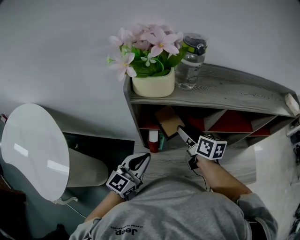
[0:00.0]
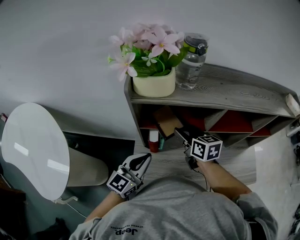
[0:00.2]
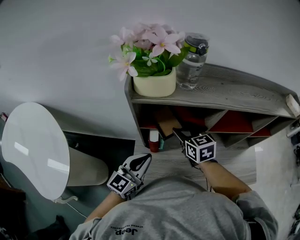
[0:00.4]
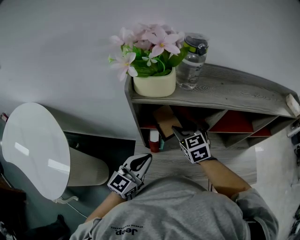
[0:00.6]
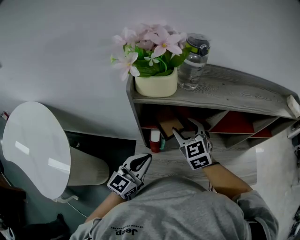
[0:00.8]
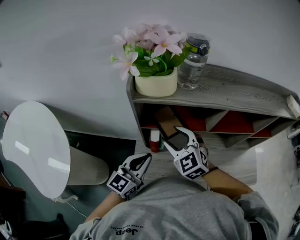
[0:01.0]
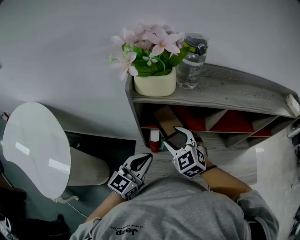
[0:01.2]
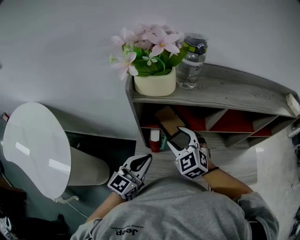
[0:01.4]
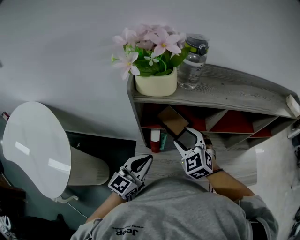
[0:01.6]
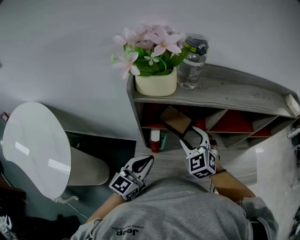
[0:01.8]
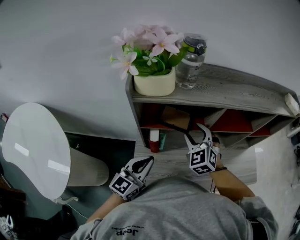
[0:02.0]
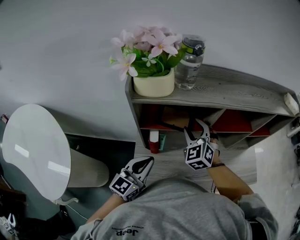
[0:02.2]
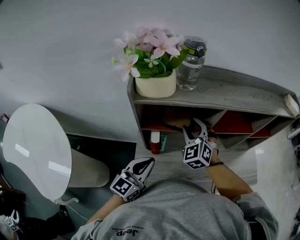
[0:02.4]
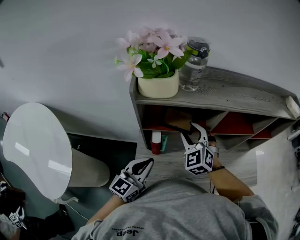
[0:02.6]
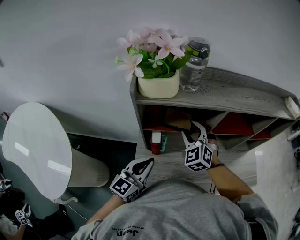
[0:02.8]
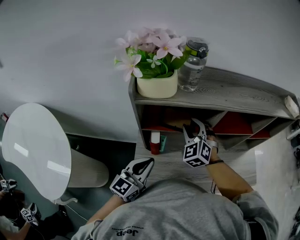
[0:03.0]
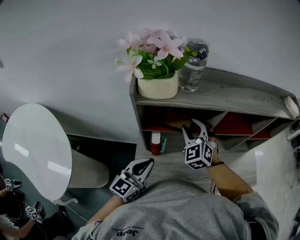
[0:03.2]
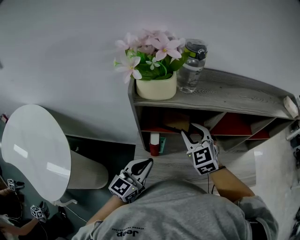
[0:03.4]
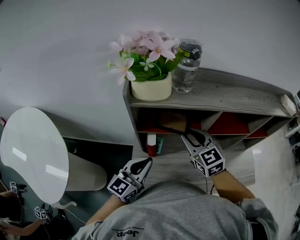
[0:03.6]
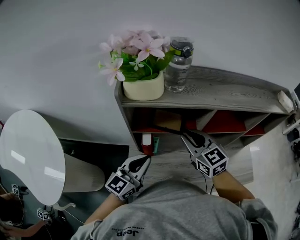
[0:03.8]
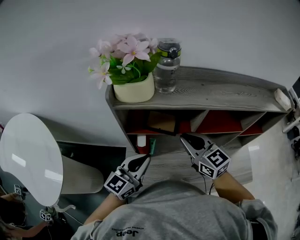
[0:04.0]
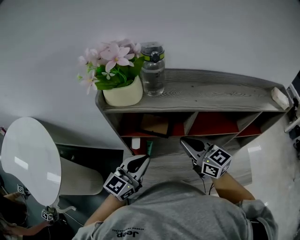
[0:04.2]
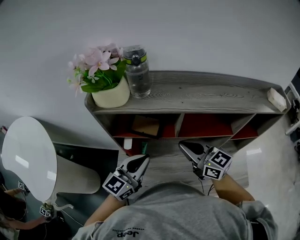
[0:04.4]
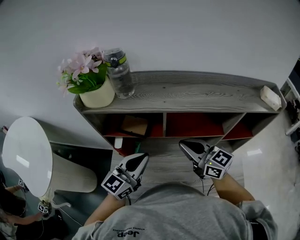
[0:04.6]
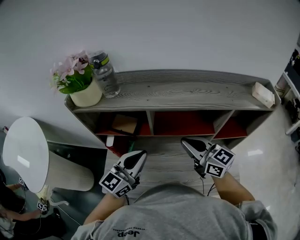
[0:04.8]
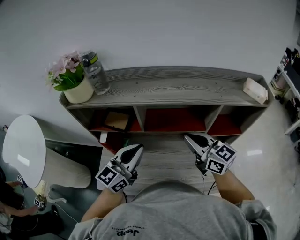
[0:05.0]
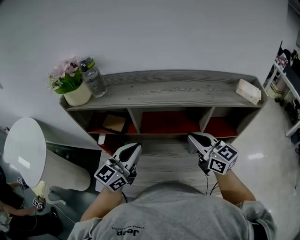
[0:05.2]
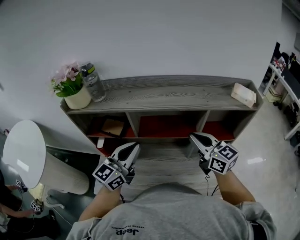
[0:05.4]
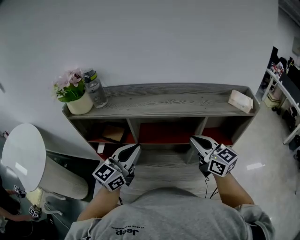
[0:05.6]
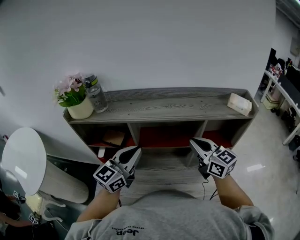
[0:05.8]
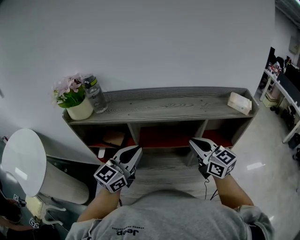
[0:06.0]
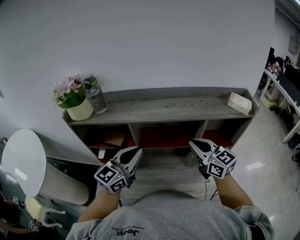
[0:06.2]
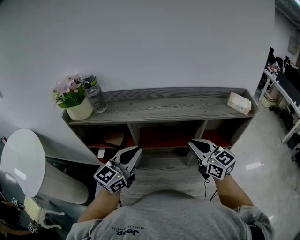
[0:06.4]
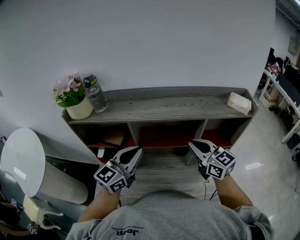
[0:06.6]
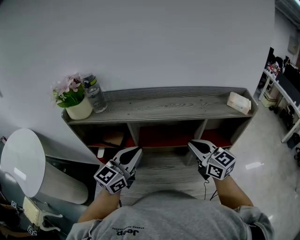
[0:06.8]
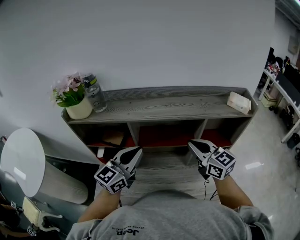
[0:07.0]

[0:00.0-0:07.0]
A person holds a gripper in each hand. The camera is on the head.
0:00.0 to 0:01.4: The right gripper shifts about 5 cm to the left, and rotates around the line of its fingers by some 70 degrees, counterclockwise from behind.
0:01.4 to 0:02.8: The right gripper heads forward, covering about 5 cm.
0:02.8 to 0:04.2: The right gripper goes roughly 10 cm to the right, upward and backward, swivels some 60 degrees, and closes. The left gripper goes roughly 10 cm to the right.
0:04.2 to 0:05.6: The right gripper heads to the right, covering roughly 30 cm. Meanwhile the left gripper heads to the right and upward, covering some 25 cm.
0:05.6 to 0:07.0: The two grippers keep their place.

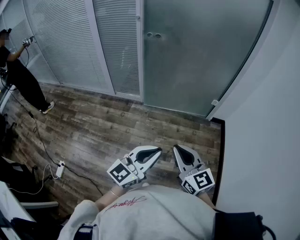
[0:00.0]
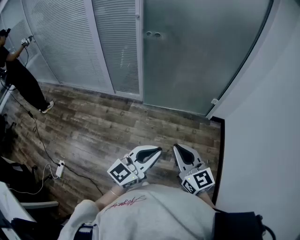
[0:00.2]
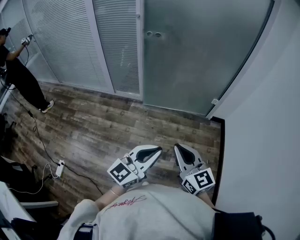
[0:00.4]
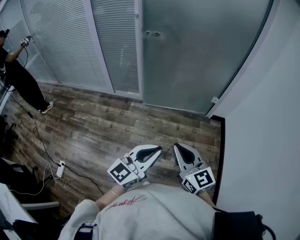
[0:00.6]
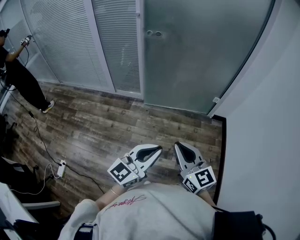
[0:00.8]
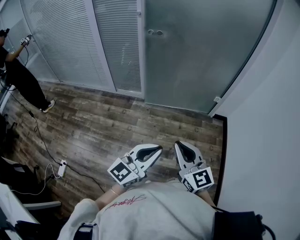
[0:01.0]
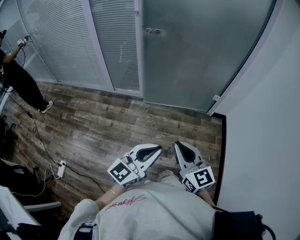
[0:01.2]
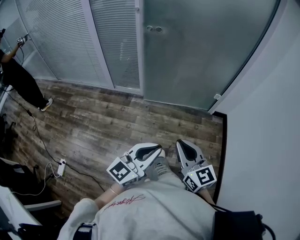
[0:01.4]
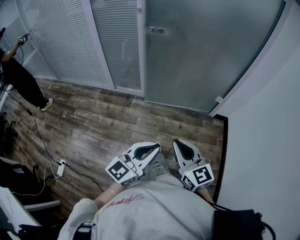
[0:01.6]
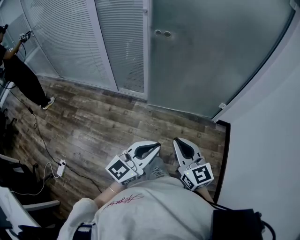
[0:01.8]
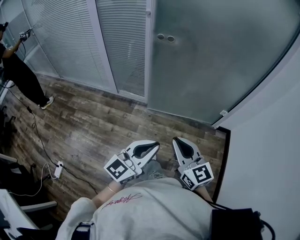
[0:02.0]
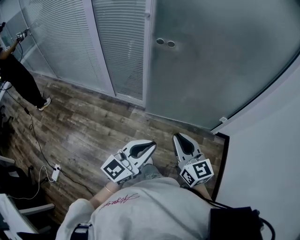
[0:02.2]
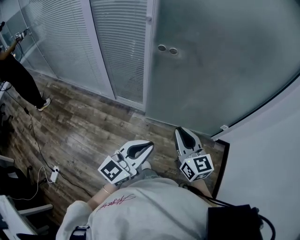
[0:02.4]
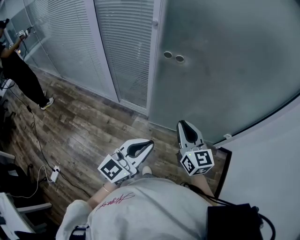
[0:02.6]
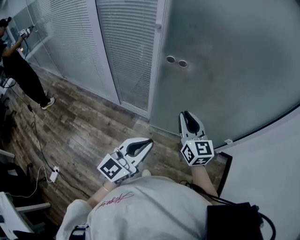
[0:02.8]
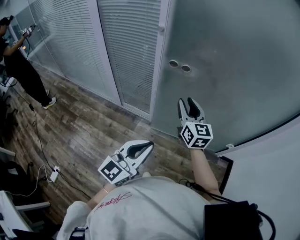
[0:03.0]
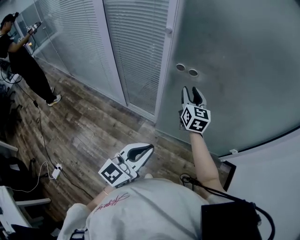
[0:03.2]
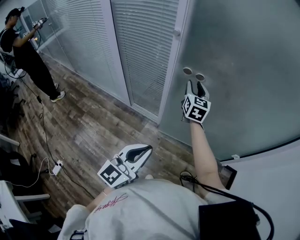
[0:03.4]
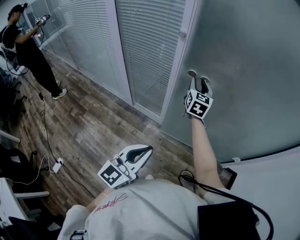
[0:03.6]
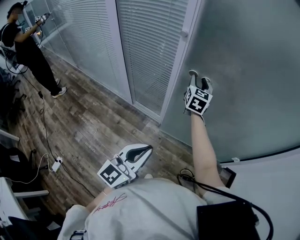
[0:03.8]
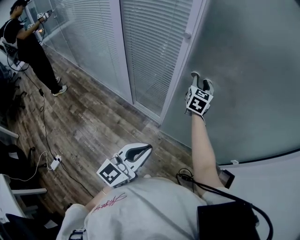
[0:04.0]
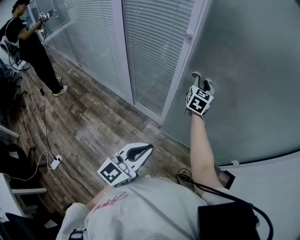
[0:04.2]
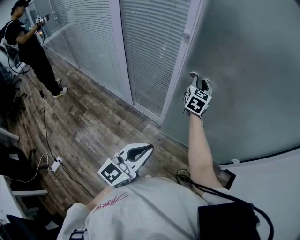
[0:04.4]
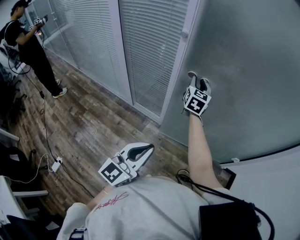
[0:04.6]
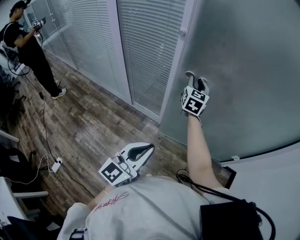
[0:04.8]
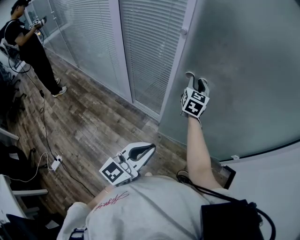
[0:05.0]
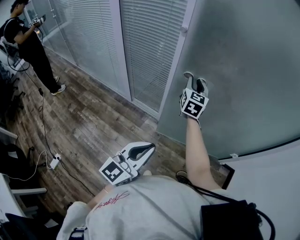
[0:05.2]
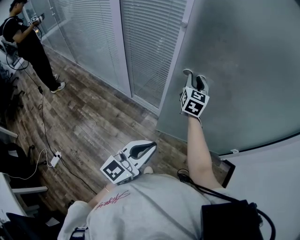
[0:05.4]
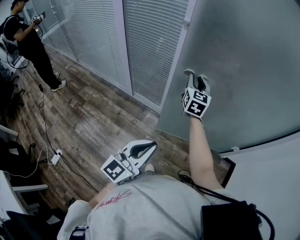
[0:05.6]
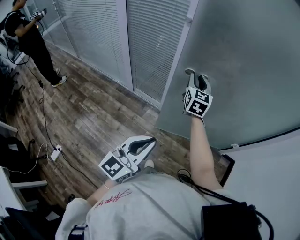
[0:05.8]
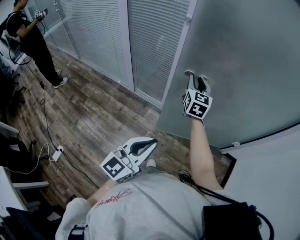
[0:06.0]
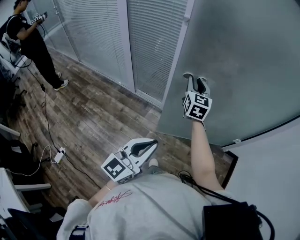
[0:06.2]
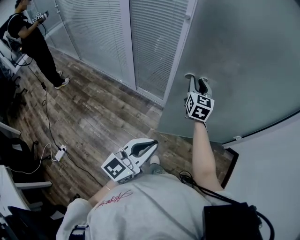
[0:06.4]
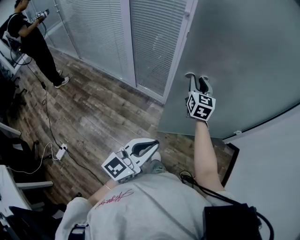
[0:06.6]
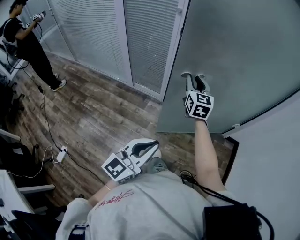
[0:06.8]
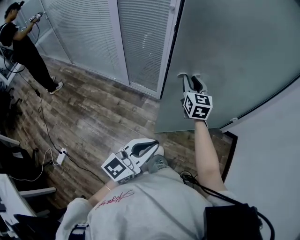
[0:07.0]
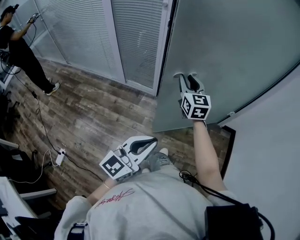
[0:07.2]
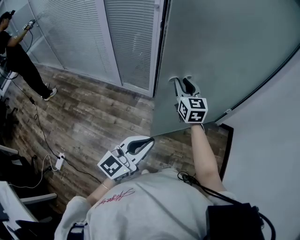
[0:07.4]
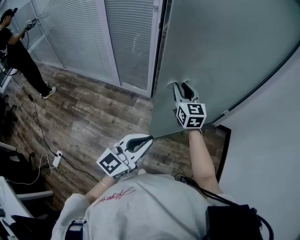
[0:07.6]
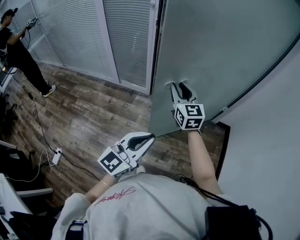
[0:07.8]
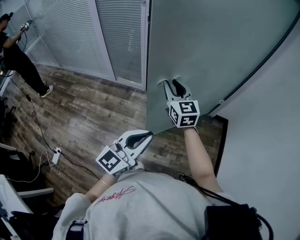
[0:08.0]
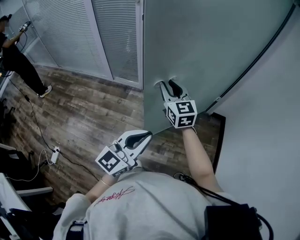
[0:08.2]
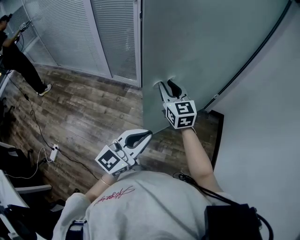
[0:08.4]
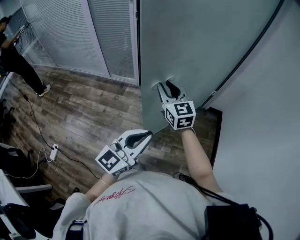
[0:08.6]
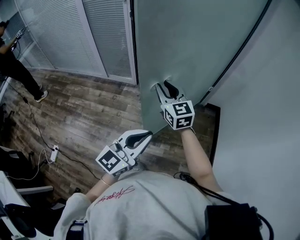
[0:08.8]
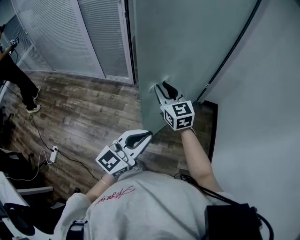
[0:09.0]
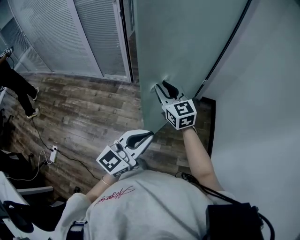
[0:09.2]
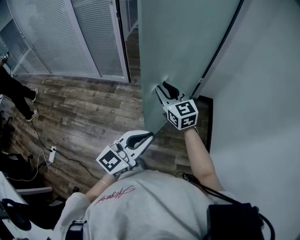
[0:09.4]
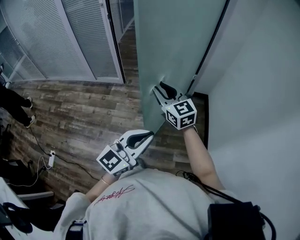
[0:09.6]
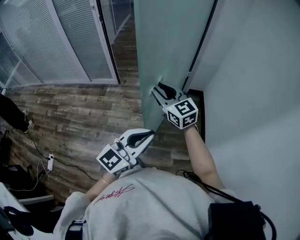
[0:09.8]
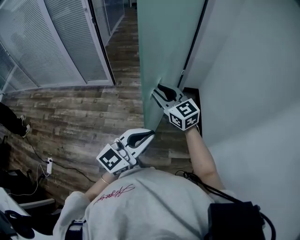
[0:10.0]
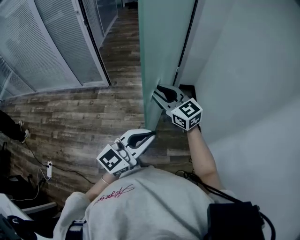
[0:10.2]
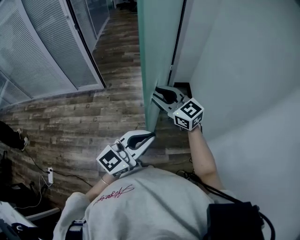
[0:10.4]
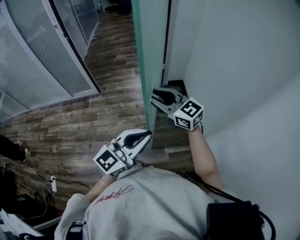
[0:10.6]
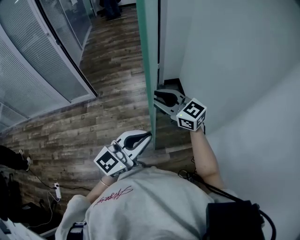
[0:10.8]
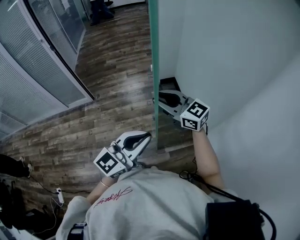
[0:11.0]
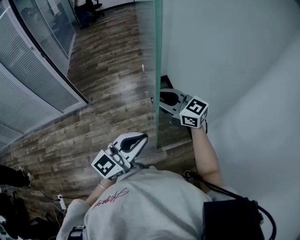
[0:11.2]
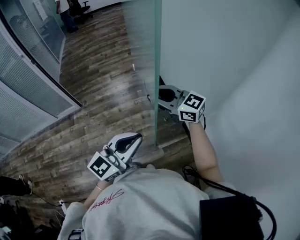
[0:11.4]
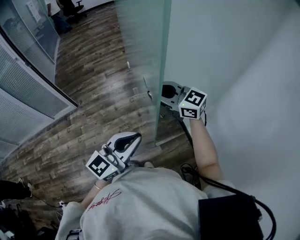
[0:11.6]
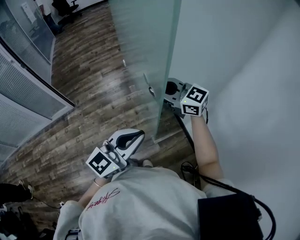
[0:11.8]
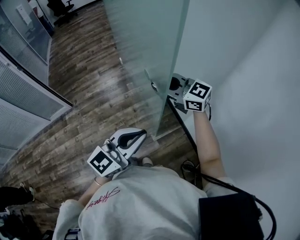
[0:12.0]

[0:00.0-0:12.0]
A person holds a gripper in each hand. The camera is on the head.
0:00.0 to 0:01.6: The two grippers go roughly 5 cm forward.
0:01.6 to 0:03.0: The left gripper shifts about 30 cm forward; the right gripper is displaced forward by about 50 cm, and opens.
0:03.0 to 0:04.4: The right gripper moves forward and to the left, approximately 20 cm, and swivels approximately 20 degrees. Meanwhile the left gripper ends up some 5 cm from where it was.
0:04.4 to 0:06.0: The right gripper heads backward, covering roughly 15 cm; the left gripper goes roughly 10 cm backward.
0:06.0 to 0:07.6: The two grippers go some 20 cm backward and to the right.
0:07.6 to 0:09.0: The left gripper goes about 20 cm to the right and backward. The right gripper shifts some 20 cm backward and to the right.
0:09.0 to 0:10.4: The right gripper heads to the right and backward, covering roughly 20 cm, while the left gripper heads to the right, covering roughly 15 cm, and rotates roughly 20 degrees.
0:10.4 to 0:12.0: The left gripper goes approximately 10 cm to the right, and changes its angle by approximately 20 degrees. The right gripper goes roughly 20 cm to the right.

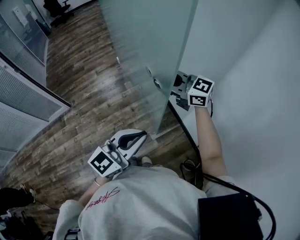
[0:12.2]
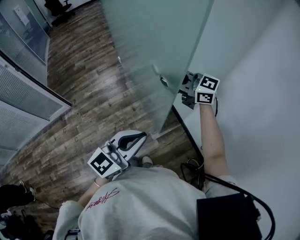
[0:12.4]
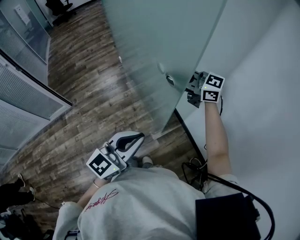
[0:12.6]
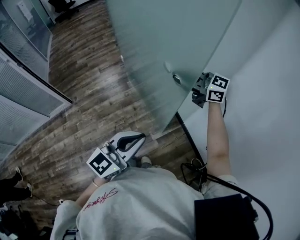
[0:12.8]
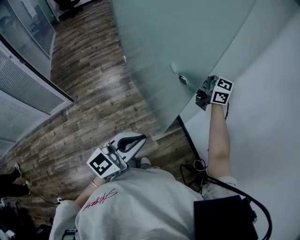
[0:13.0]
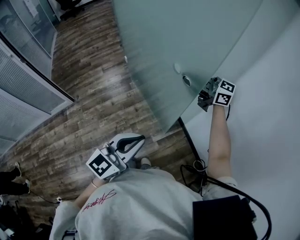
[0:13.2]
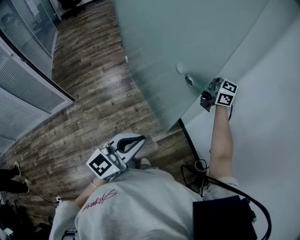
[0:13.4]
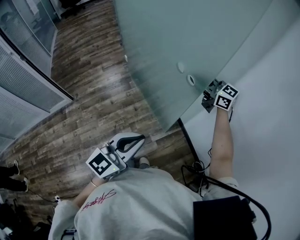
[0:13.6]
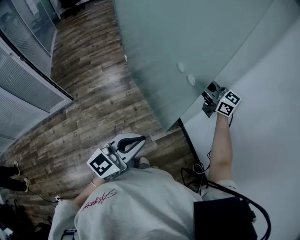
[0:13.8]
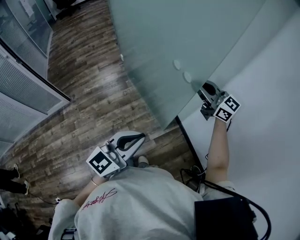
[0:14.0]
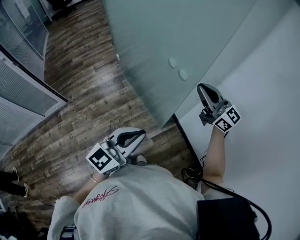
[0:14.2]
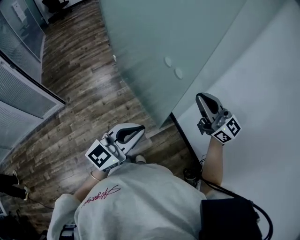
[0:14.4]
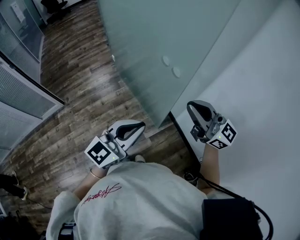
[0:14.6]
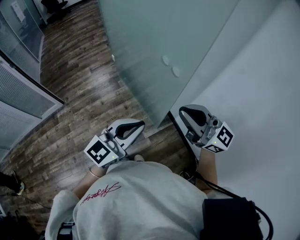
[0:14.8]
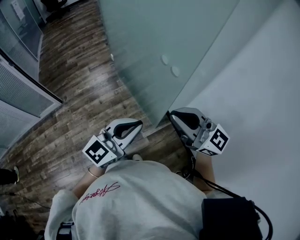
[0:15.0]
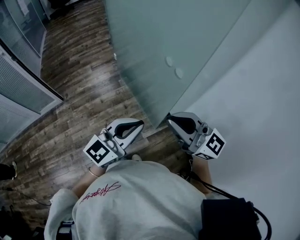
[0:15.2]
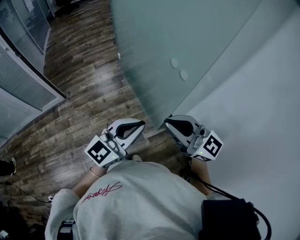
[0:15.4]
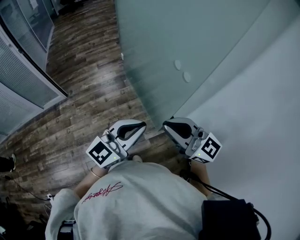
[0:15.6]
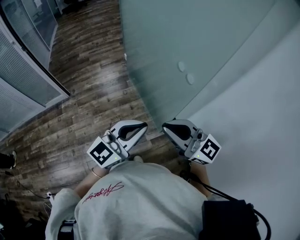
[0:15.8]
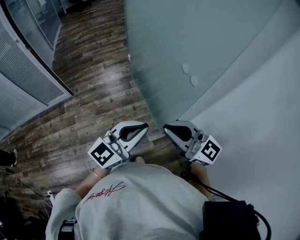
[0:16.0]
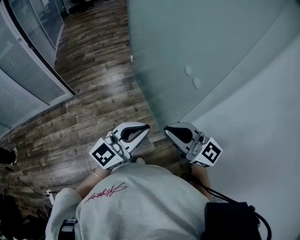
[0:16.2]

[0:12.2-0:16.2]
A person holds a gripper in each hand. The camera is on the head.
0:12.2 to 0:13.6: The right gripper goes some 10 cm to the right.
0:13.6 to 0:14.8: The right gripper travels backward by about 20 cm.
0:14.8 to 0:16.2: The right gripper is displaced to the left by roughly 10 cm.
